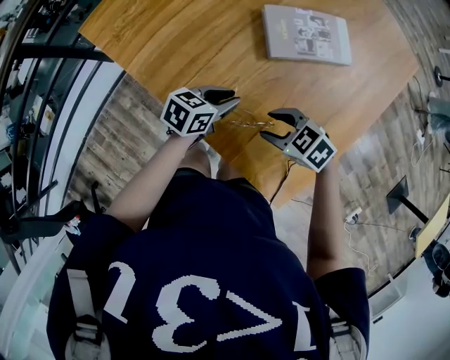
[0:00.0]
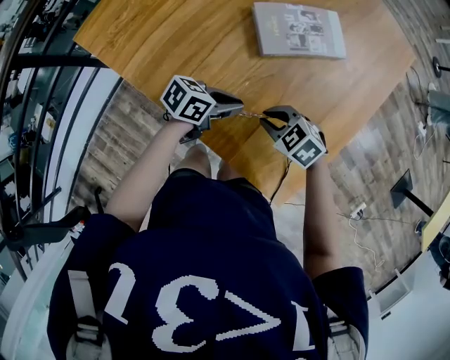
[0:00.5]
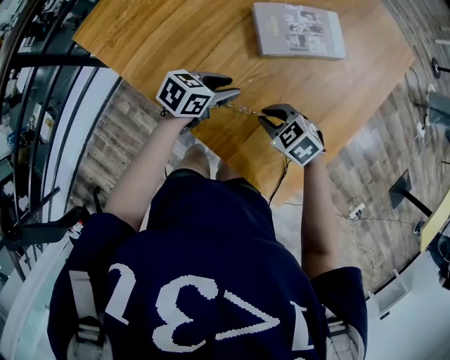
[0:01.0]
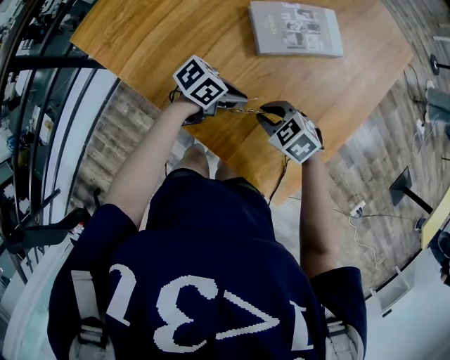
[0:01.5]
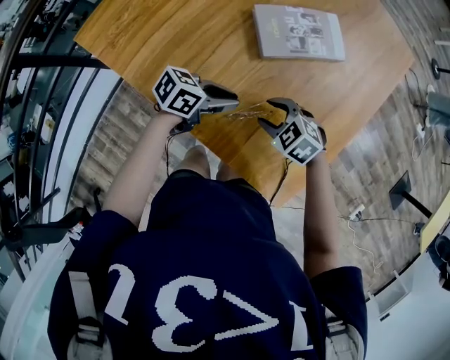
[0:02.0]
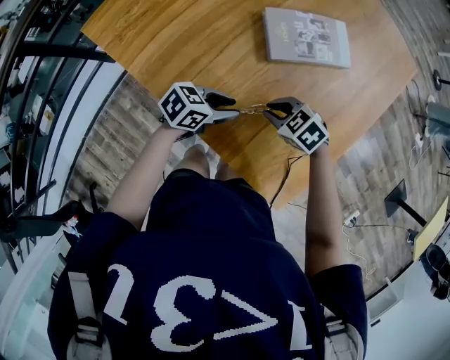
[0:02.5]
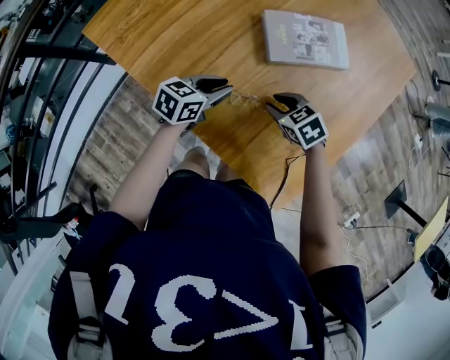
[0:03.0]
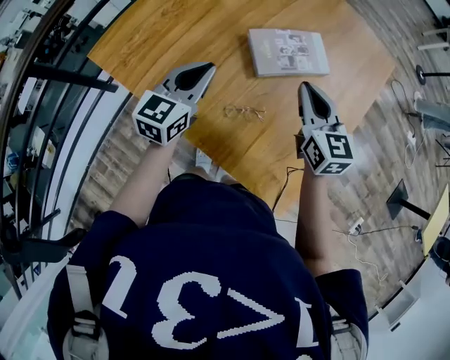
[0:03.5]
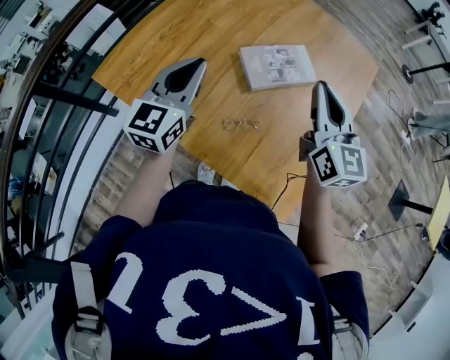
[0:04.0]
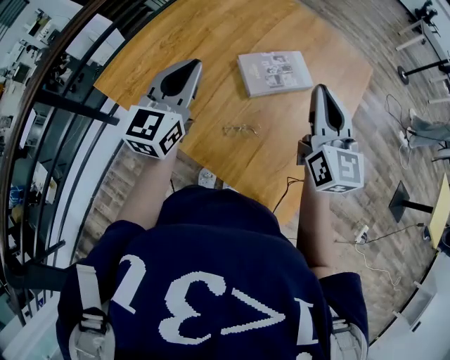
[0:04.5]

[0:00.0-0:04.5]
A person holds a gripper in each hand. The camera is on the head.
0:00.0 to 0:02.0: The left gripper swivels roughly 20 degrees; the right gripper closes, then opens again.
0:02.0 to 0:04.5: The two grippers go roughly 30 cm upward. The right gripper tilts its fingers about 60 degrees upward, and closes up. Meanwhile the left gripper changes its angle by roughly 70 degrees, and opens, then closes again.

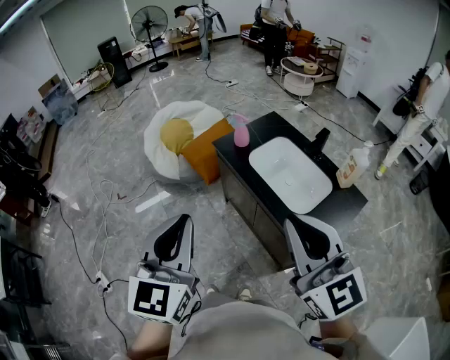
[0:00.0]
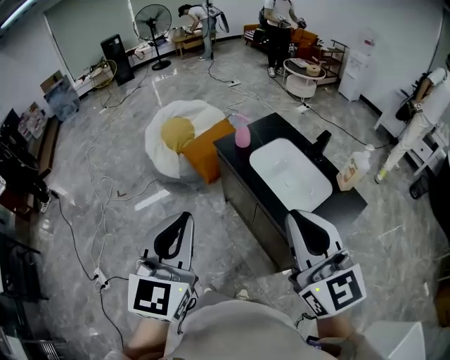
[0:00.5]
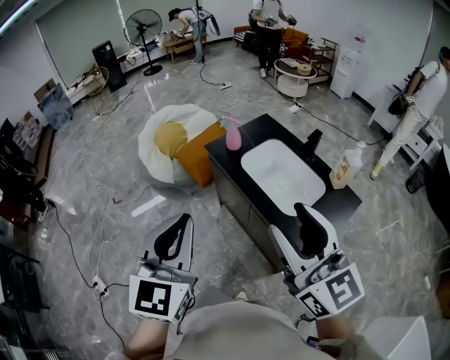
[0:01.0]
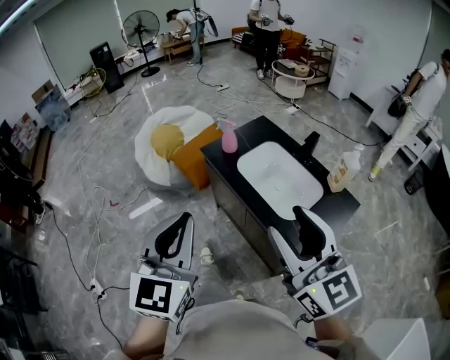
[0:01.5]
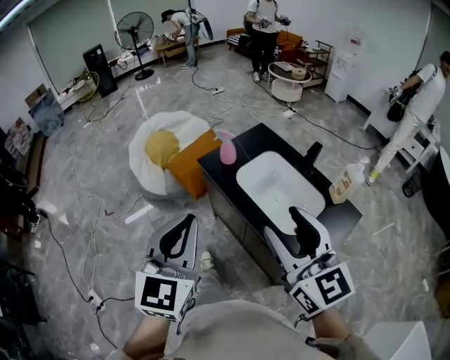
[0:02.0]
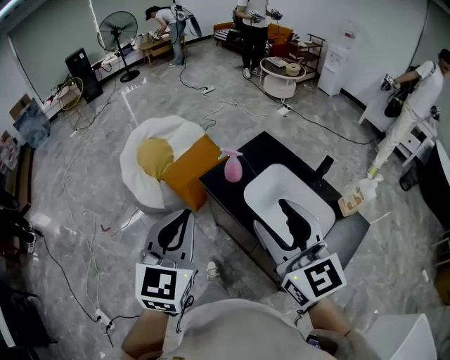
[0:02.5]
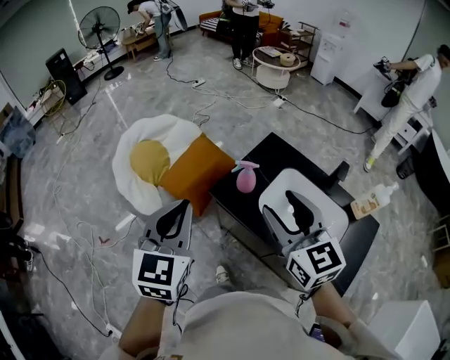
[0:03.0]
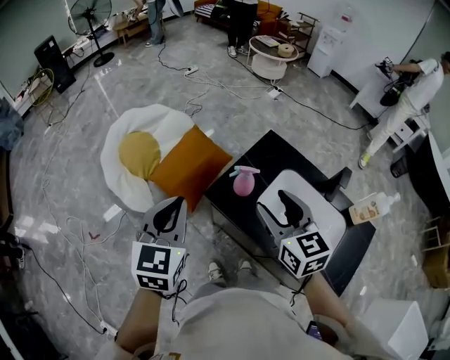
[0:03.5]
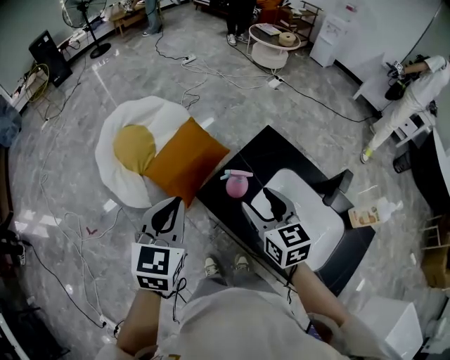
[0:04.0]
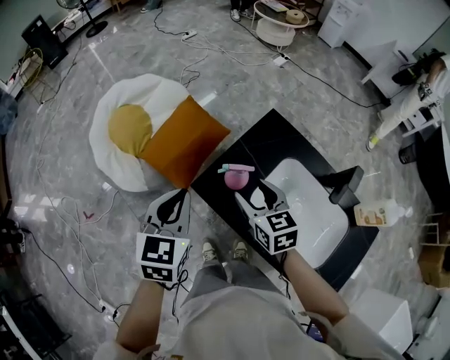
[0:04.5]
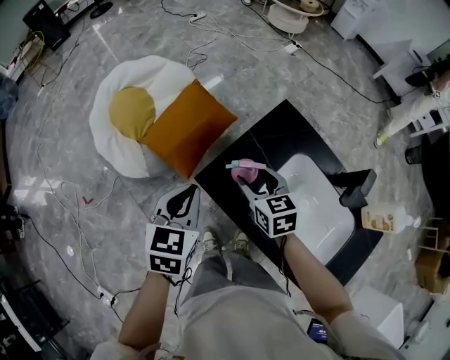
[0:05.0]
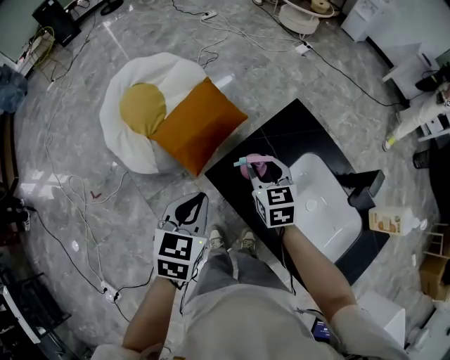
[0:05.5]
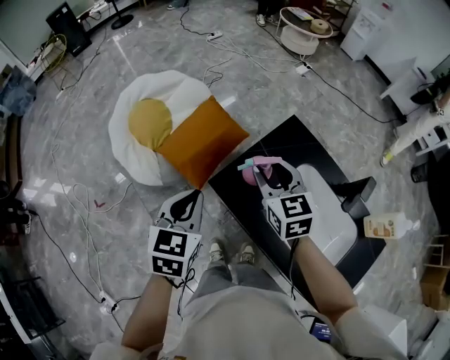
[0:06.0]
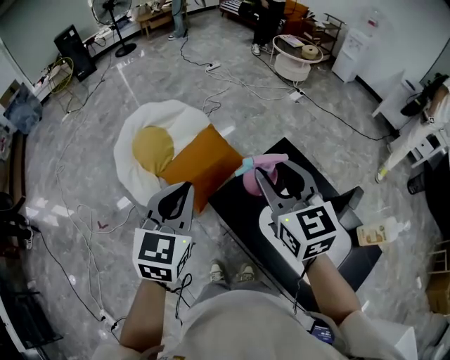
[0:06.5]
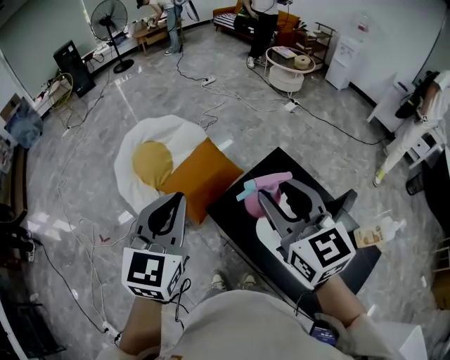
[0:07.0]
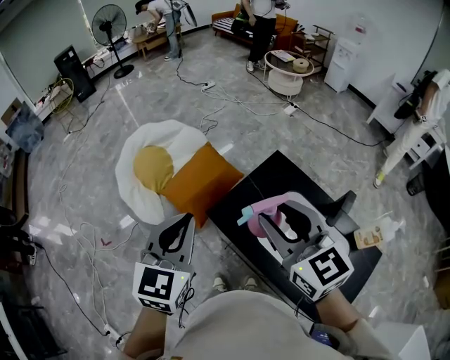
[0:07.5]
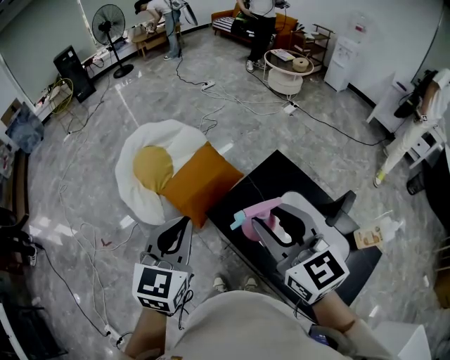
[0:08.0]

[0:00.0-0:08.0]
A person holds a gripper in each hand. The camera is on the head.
0:00.0 to 0:02.0: The right gripper heads forward, covering roughly 10 cm, and opens its fingers. The left gripper heads forward and to the right, covering some 10 cm.
0:02.0 to 0:04.0: The two grippers travel together, forward, some 40 cm. The right gripper heads downward, covering about 20 cm, and swivels roughly 30 degrees, while the left gripper rotates about 20 degrees.
0:04.0 to 0:06.0: The left gripper is displaced downward by roughly 5 cm, while the right gripper heads forward, covering approximately 10 cm, and moves about 15 cm downward and comes back.
0:06.0 to 0:08.0: The left gripper heads upward, covering some 15 cm; the right gripper moves upward and backward, about 25 cm.

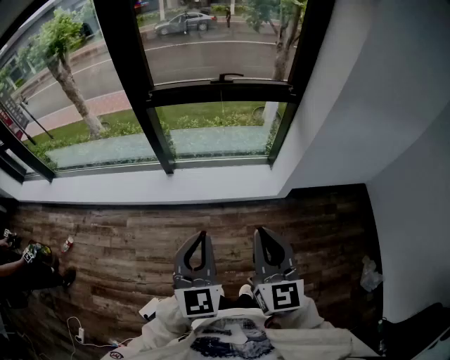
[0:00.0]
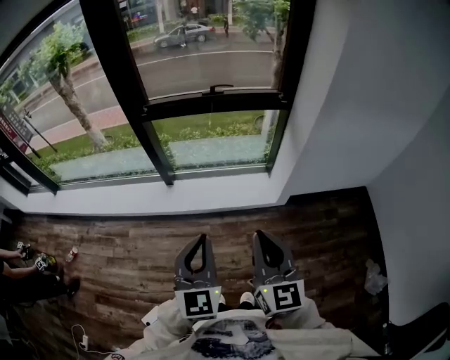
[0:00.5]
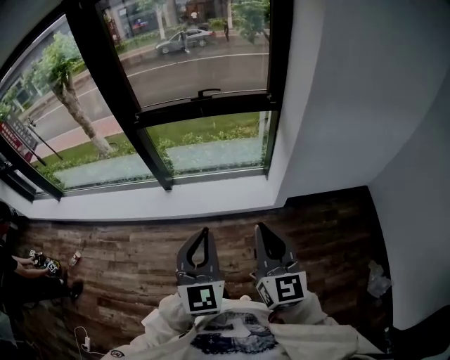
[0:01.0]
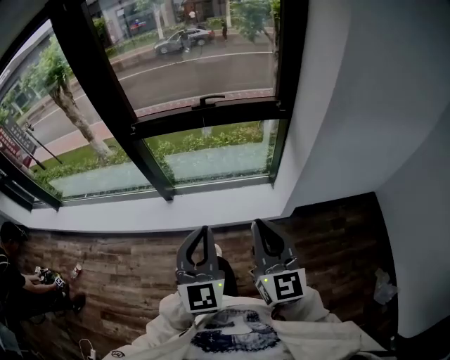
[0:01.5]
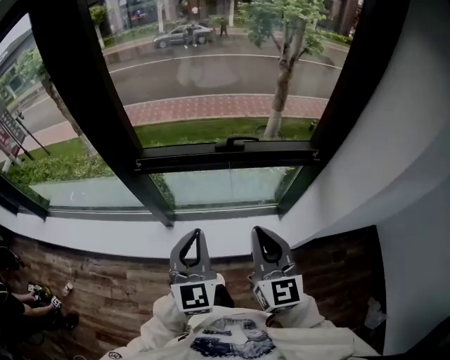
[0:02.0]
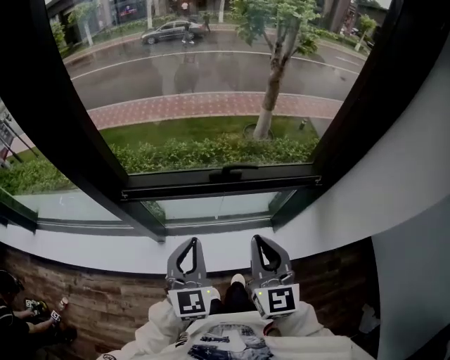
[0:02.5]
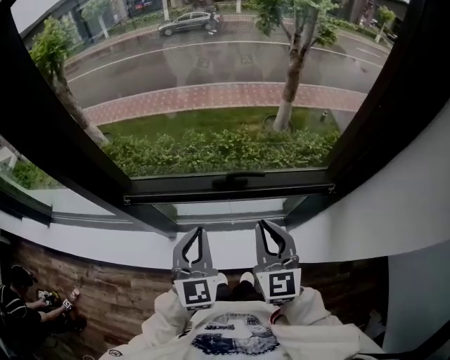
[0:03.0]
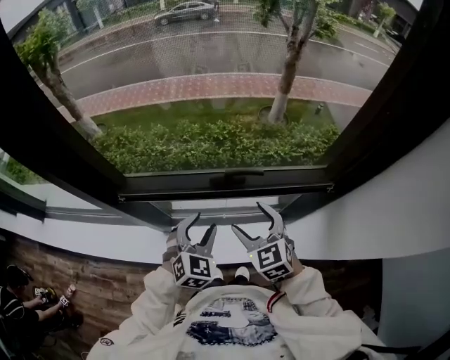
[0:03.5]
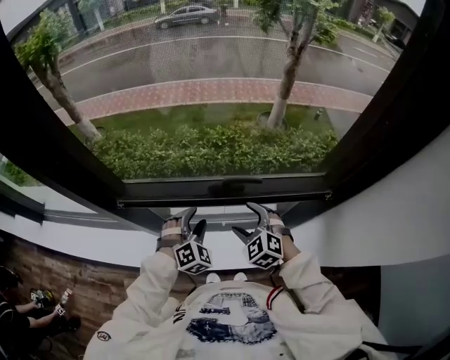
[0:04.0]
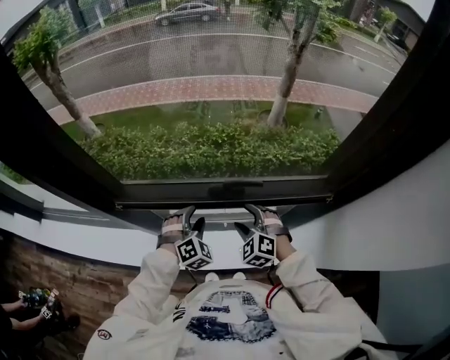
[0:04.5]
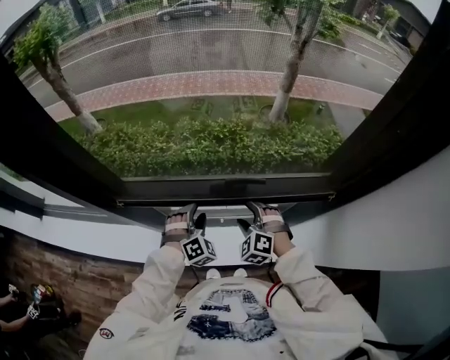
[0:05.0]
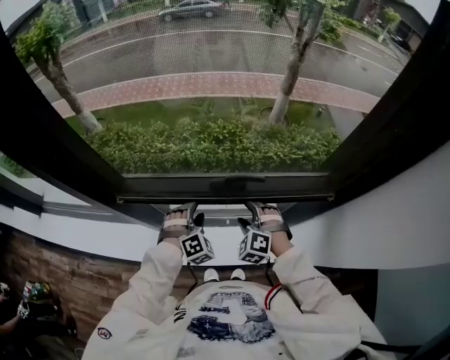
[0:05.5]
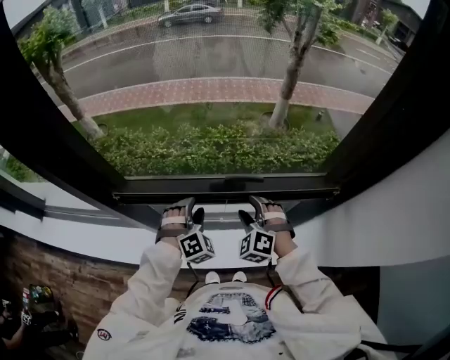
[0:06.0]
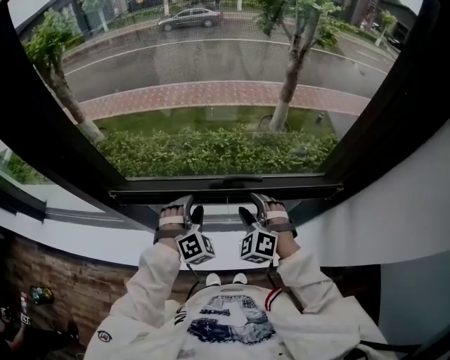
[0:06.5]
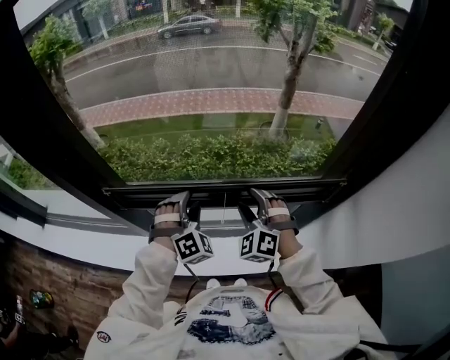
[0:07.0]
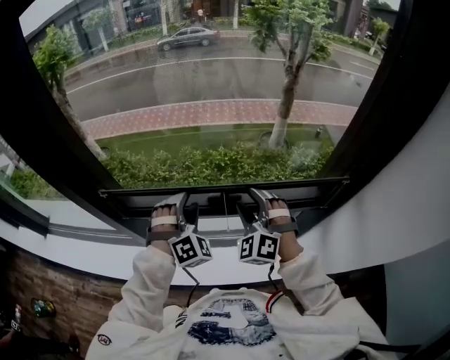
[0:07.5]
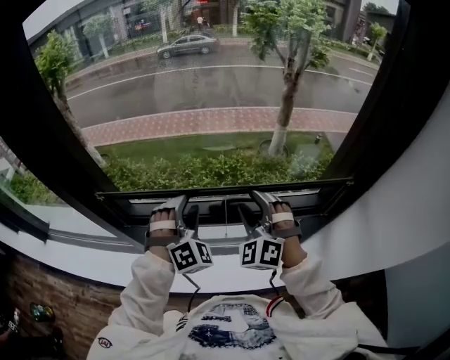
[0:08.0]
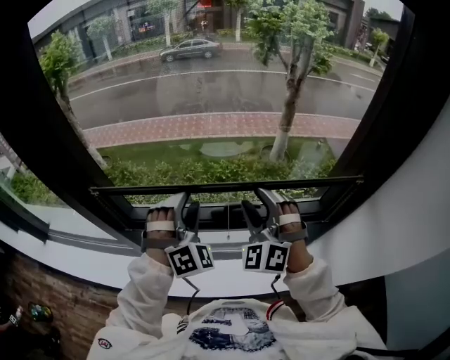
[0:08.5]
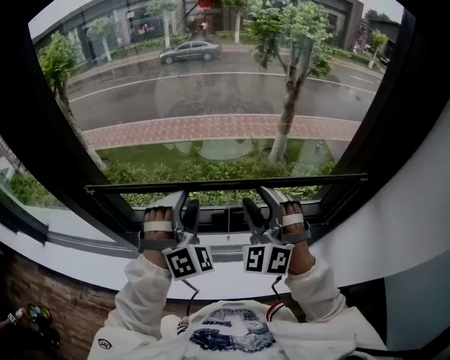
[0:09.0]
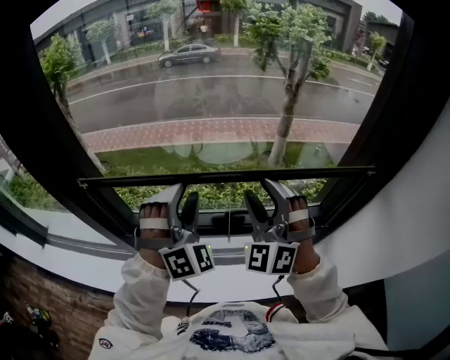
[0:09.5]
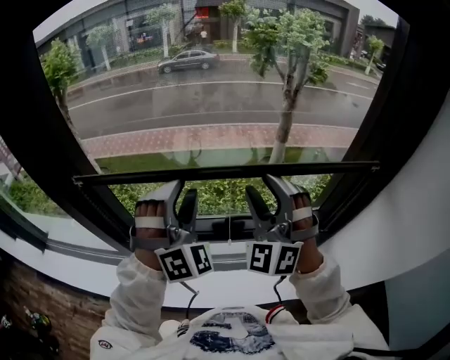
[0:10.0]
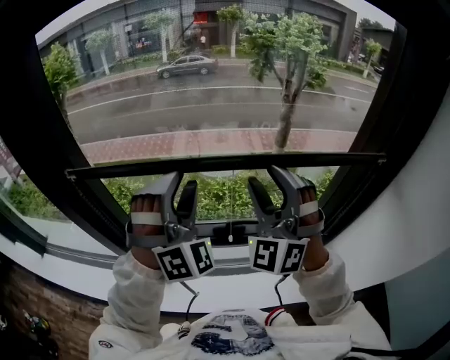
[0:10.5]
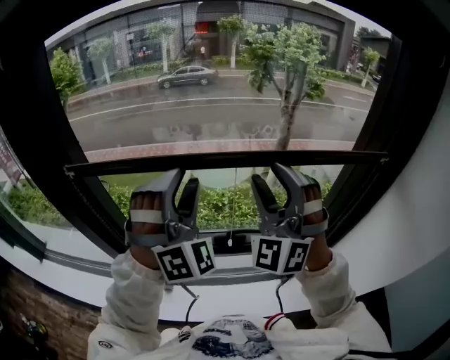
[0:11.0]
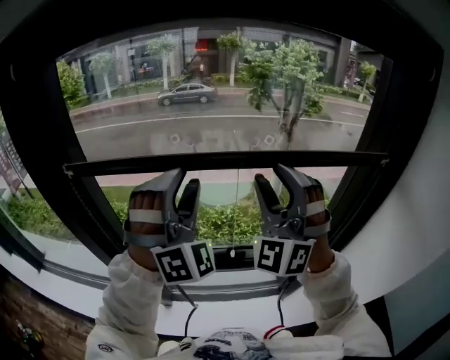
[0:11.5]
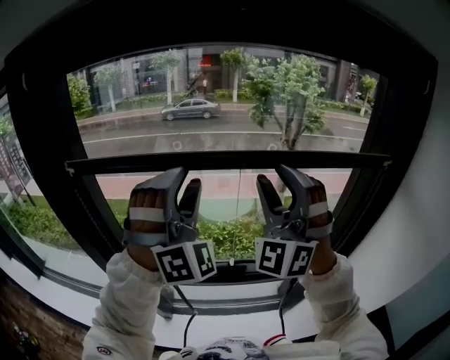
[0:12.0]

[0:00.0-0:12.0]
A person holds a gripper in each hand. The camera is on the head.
0:00.0 to 0:02.0: Both grippers move forward, roughly 40 cm.
0:02.0 to 0:04.0: The two grippers go roughly 35 cm forward and downward. The left gripper tilts its fingers about 30 degrees downward, and opens, while the right gripper angles its fingers downward, by approximately 40 degrees, and opens its fingers.
0:04.0 to 0:06.0: The right gripper changes its angle by about 20 degrees.
0:06.0 to 0:08.0: Both grippers move upward, about 15 cm. The right gripper swivels approximately 20 degrees.
0:08.0 to 0:10.0: The grippers both shift upward by approximately 15 cm.
0:10.0 to 0:12.0: The two grippers go roughly 15 cm upward.

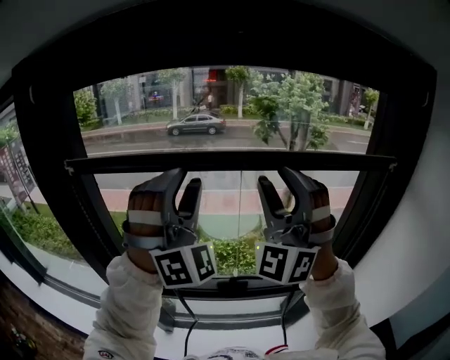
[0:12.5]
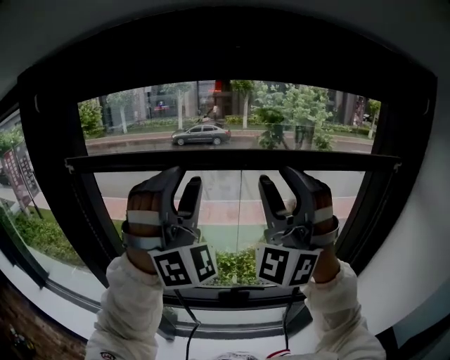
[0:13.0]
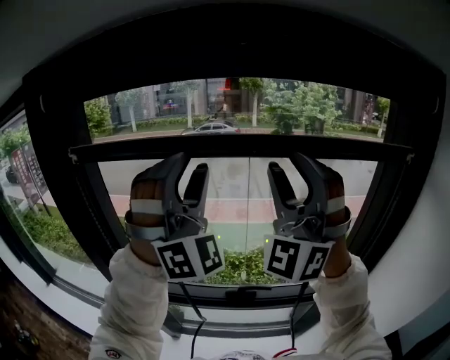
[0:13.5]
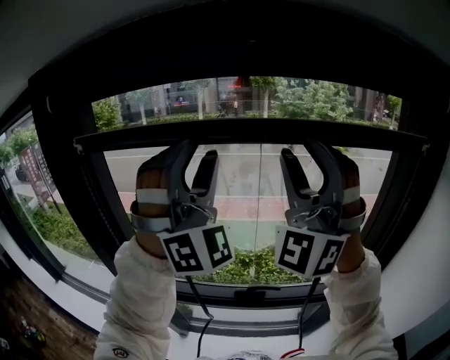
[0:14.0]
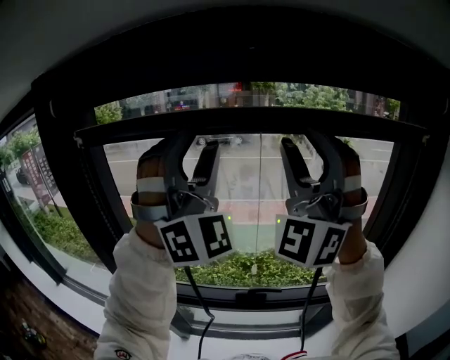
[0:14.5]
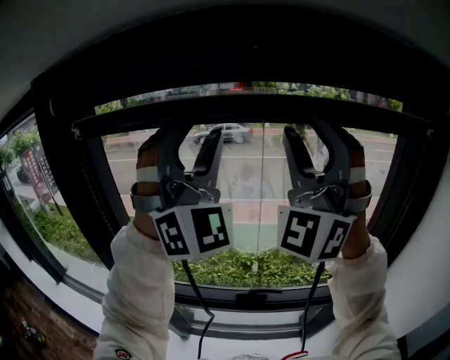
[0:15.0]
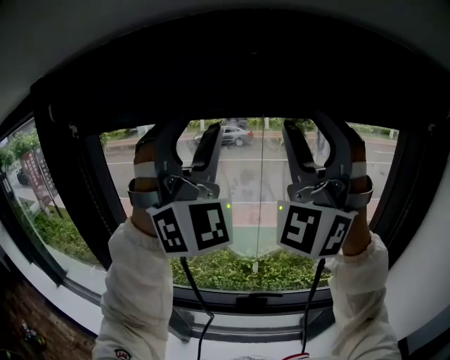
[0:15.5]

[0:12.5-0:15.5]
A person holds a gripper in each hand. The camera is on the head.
0:12.5 to 0:14.0: The grippers both shift upward by roughly 10 cm.
0:14.0 to 0:15.5: The grippers both shift upward by roughly 5 cm.
